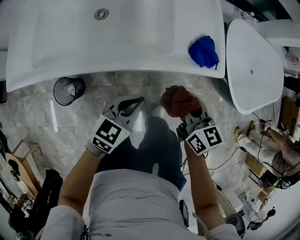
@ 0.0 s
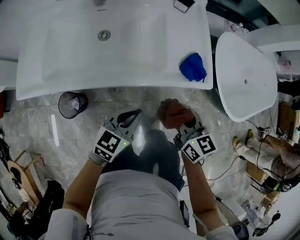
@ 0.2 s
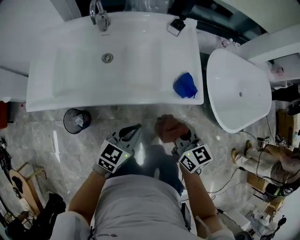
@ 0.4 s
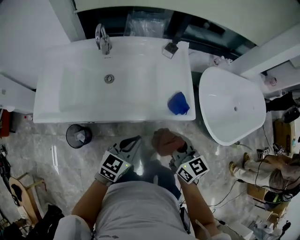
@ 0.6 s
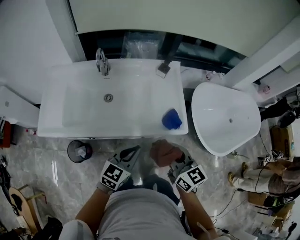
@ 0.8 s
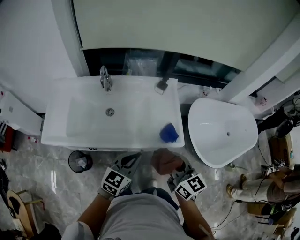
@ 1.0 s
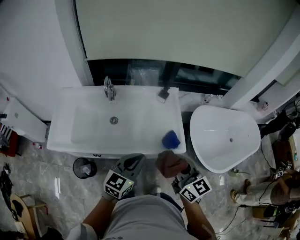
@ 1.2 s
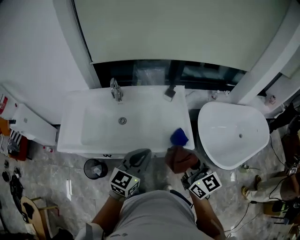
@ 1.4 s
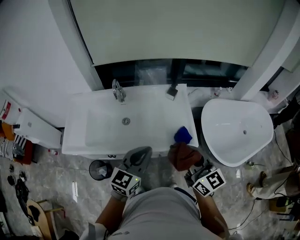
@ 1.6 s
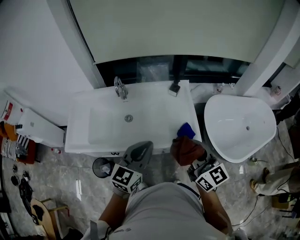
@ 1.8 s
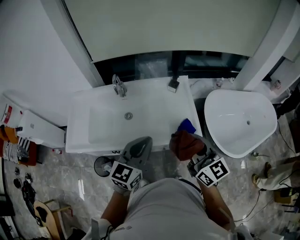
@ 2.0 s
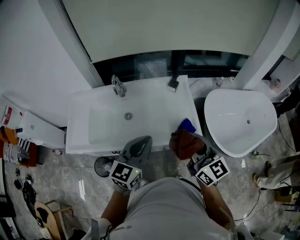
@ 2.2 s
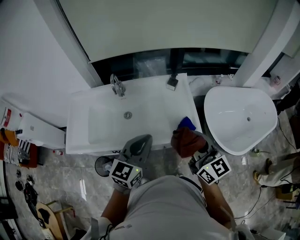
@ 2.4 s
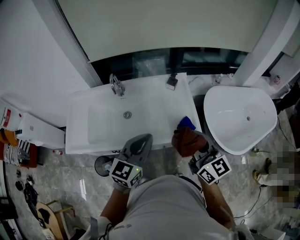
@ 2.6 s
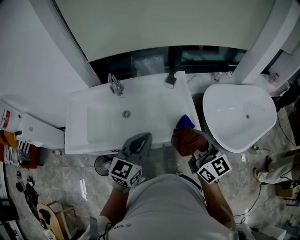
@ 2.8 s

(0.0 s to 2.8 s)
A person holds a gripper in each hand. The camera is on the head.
0.0 s - 1.4 s: The two grippers go about 30 cm upward. The left gripper turns by approximately 20 degrees, while the right gripper changes its angle by approximately 20 degrees.
1.4 s - 2.8 s: The grippers stay close to where they were, moving slightly.

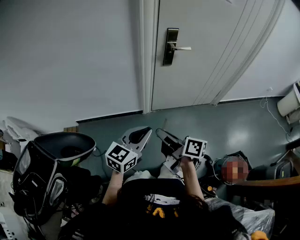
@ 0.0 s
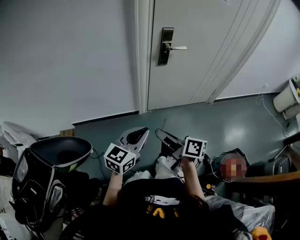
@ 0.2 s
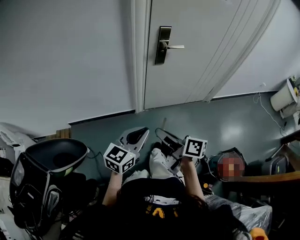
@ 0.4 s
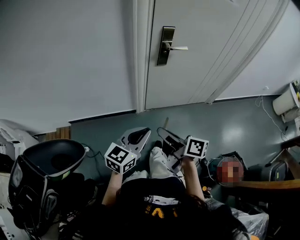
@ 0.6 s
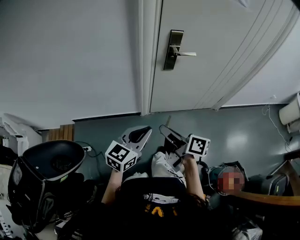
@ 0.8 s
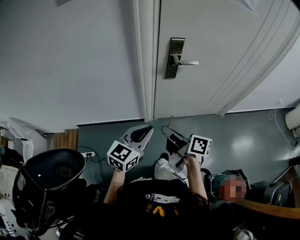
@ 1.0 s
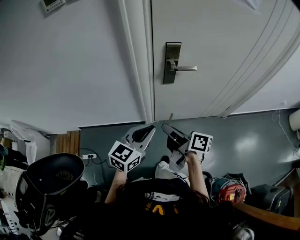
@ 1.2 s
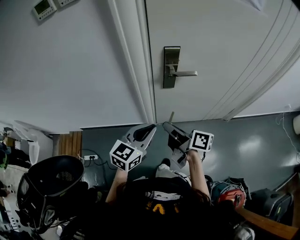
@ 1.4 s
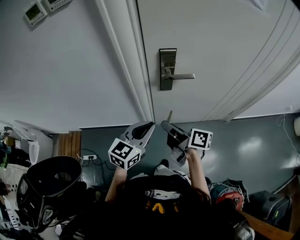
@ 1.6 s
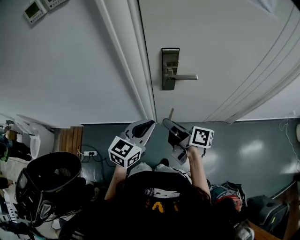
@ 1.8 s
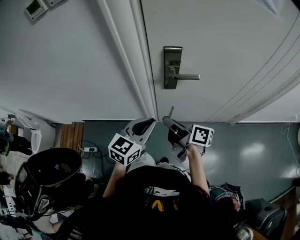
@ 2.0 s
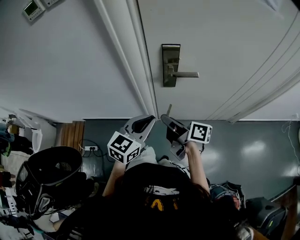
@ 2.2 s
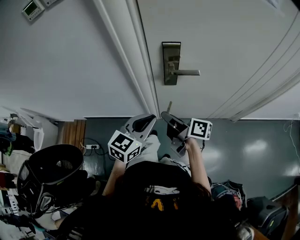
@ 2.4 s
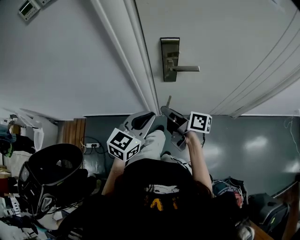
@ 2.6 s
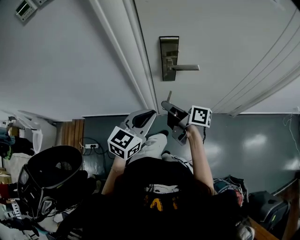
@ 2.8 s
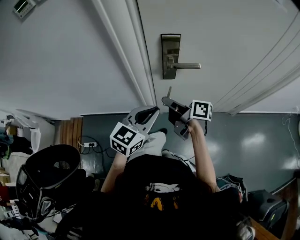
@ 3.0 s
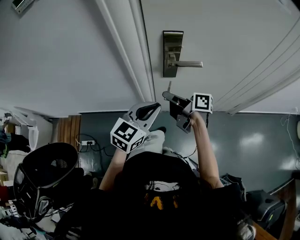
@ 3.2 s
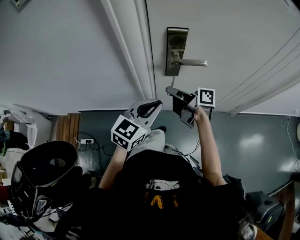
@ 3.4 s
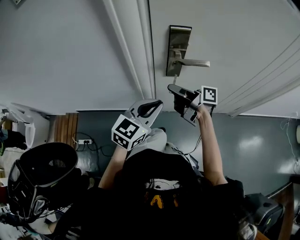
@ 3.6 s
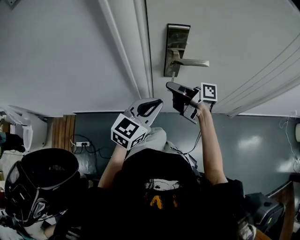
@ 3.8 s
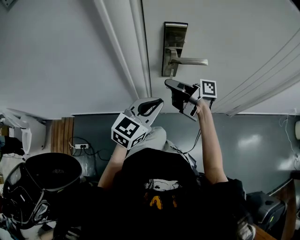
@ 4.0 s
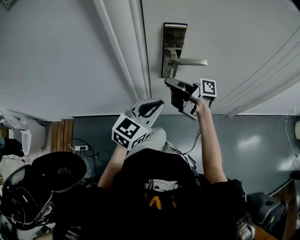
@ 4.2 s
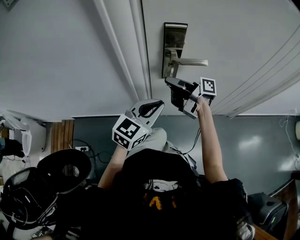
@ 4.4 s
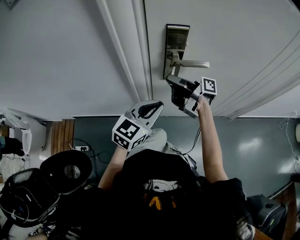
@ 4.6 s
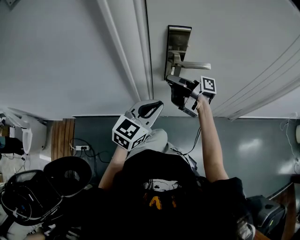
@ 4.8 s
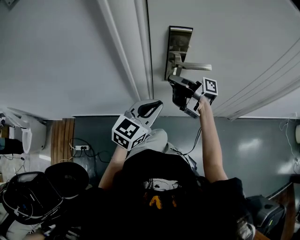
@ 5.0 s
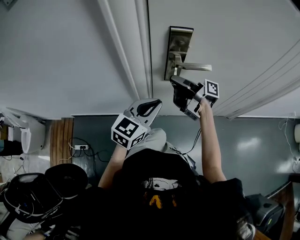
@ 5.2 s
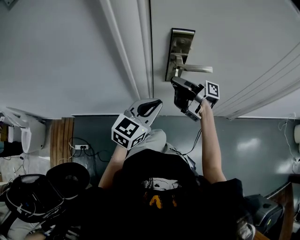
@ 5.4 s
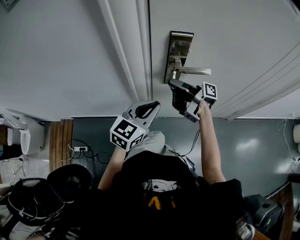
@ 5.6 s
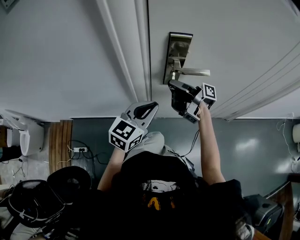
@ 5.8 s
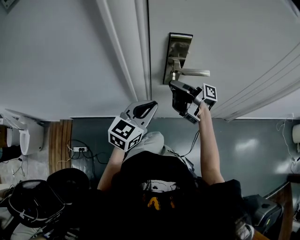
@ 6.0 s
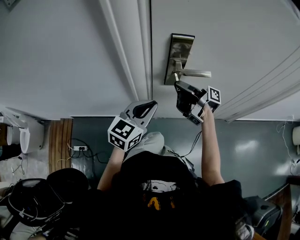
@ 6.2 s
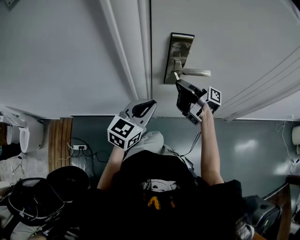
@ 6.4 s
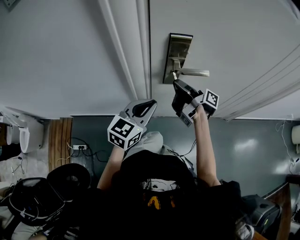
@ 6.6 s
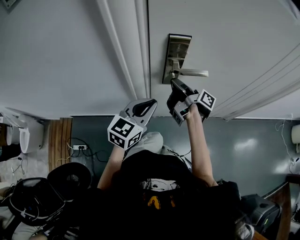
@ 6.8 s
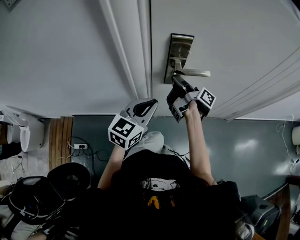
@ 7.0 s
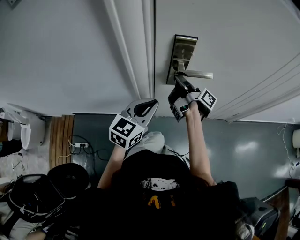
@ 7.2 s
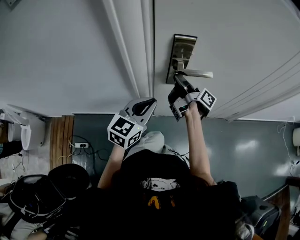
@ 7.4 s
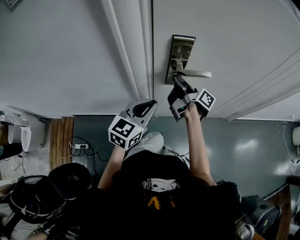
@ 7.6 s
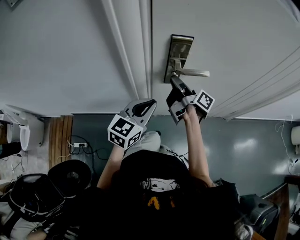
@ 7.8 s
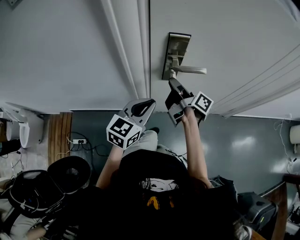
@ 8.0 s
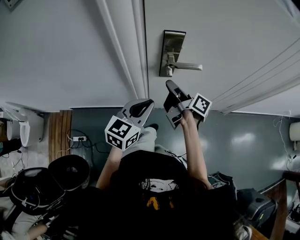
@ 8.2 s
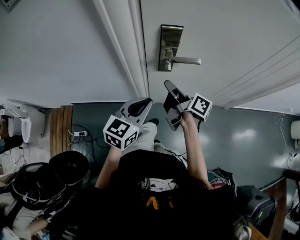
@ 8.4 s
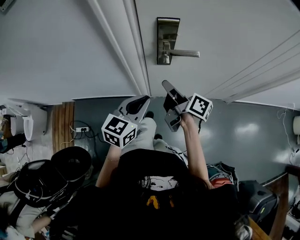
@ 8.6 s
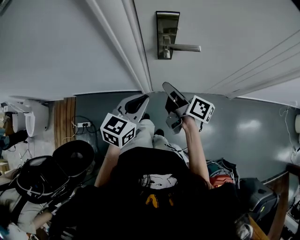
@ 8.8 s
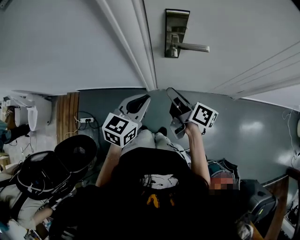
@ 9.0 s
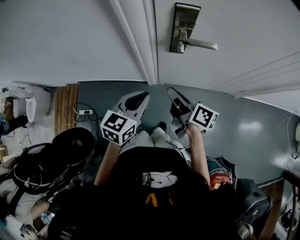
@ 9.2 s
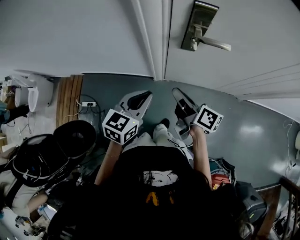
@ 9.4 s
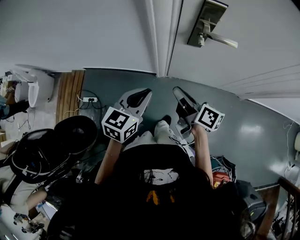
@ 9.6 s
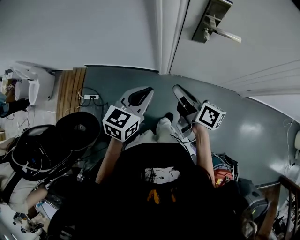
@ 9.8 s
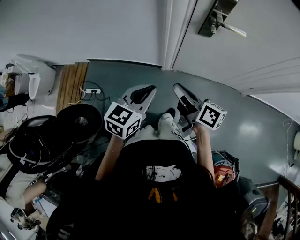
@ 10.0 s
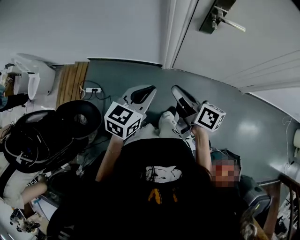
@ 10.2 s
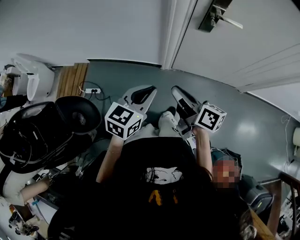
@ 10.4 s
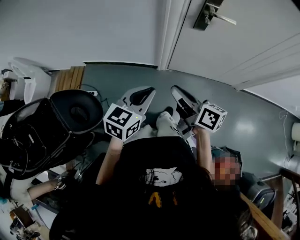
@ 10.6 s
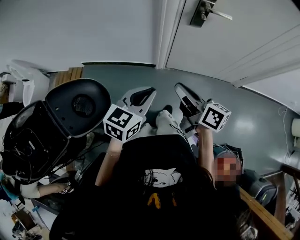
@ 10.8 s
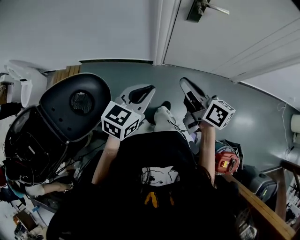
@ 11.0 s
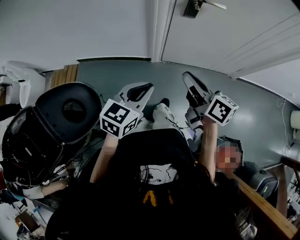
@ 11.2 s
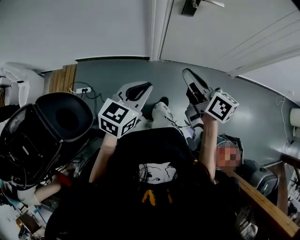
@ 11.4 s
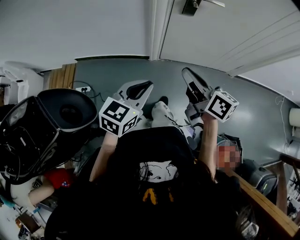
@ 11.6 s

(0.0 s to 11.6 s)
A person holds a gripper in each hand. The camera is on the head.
0.0 s - 1.4 s: The left gripper shifts by about 30 cm.
1.4 s - 2.8 s: The left gripper changes place by about 5 cm.
2.8 s - 4.4 s: The left gripper moves downward, about 5 cm.
7.2 s - 8.8 s: The left gripper moves some 10 cm.
8.8 s - 10.2 s: The left gripper ends up roughly 20 cm from where it was.
10.2 s - 11.6 s: The left gripper ends up approximately 10 cm from where it was.

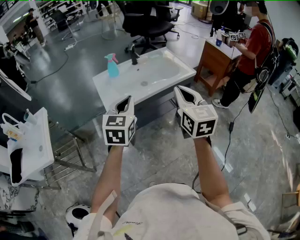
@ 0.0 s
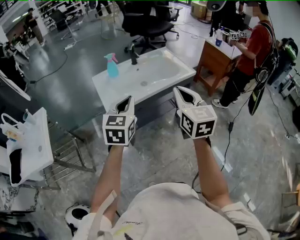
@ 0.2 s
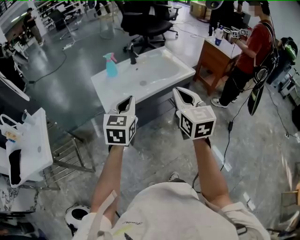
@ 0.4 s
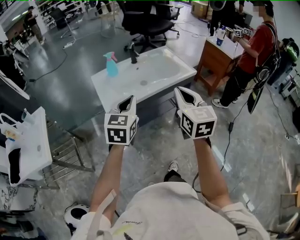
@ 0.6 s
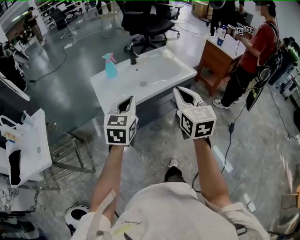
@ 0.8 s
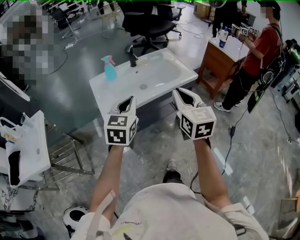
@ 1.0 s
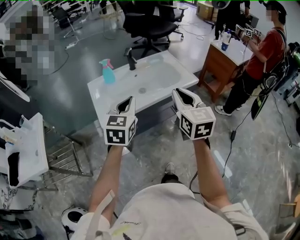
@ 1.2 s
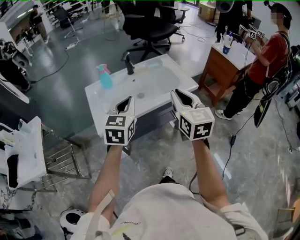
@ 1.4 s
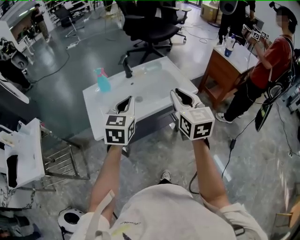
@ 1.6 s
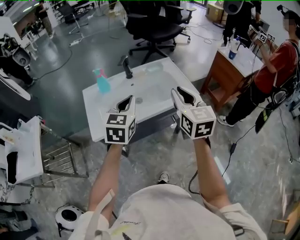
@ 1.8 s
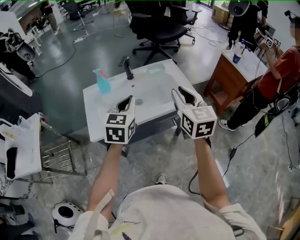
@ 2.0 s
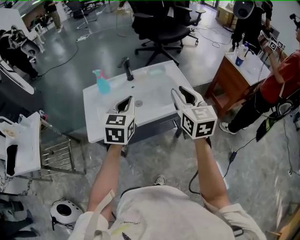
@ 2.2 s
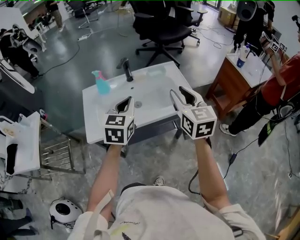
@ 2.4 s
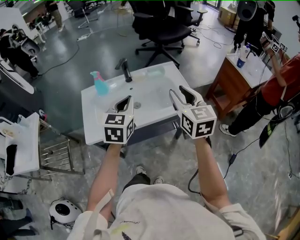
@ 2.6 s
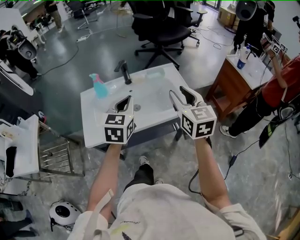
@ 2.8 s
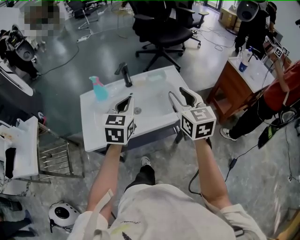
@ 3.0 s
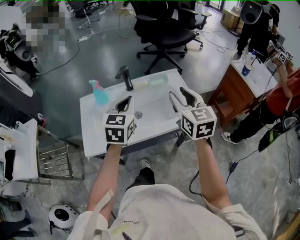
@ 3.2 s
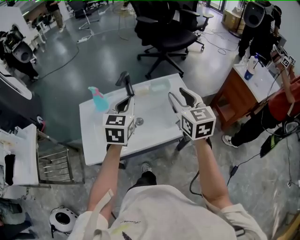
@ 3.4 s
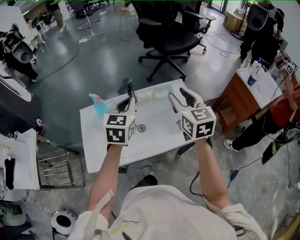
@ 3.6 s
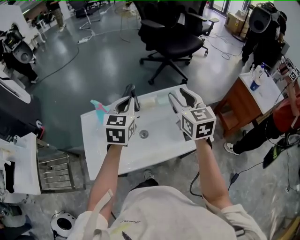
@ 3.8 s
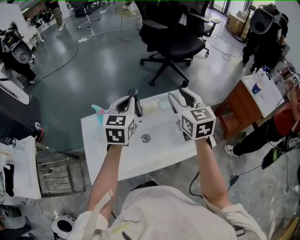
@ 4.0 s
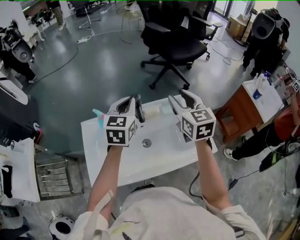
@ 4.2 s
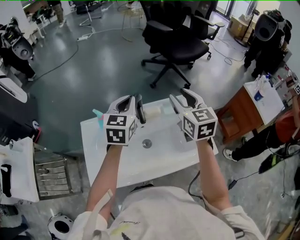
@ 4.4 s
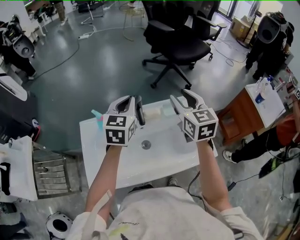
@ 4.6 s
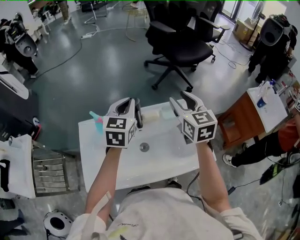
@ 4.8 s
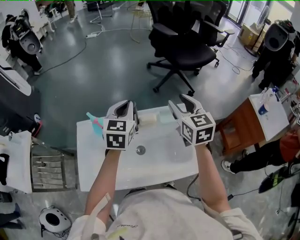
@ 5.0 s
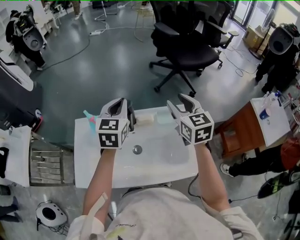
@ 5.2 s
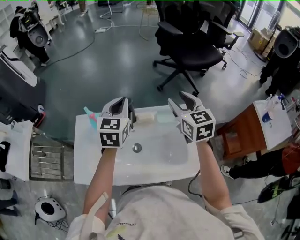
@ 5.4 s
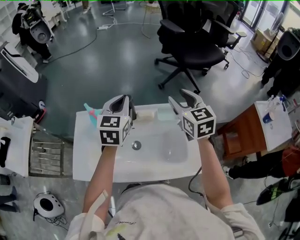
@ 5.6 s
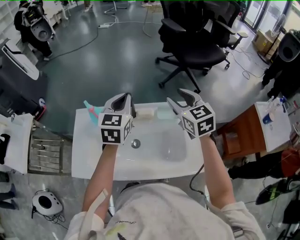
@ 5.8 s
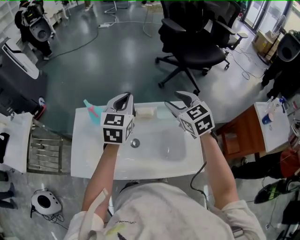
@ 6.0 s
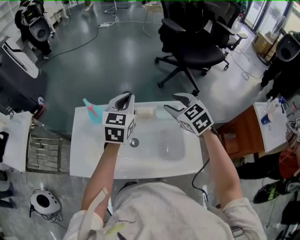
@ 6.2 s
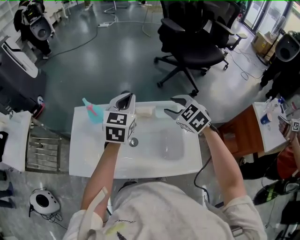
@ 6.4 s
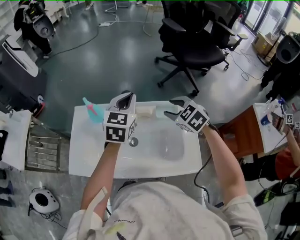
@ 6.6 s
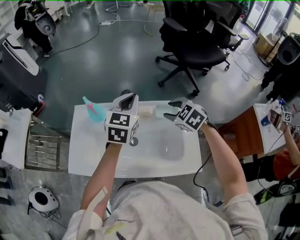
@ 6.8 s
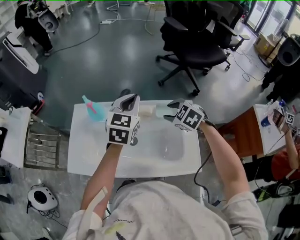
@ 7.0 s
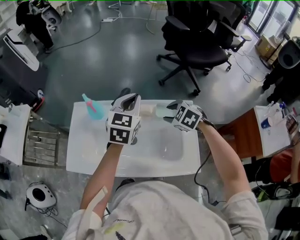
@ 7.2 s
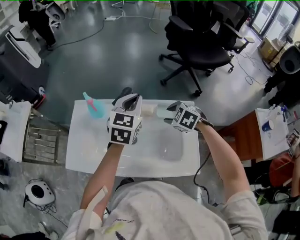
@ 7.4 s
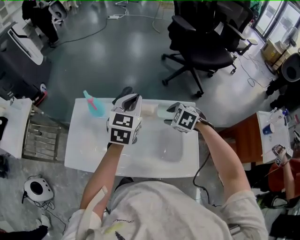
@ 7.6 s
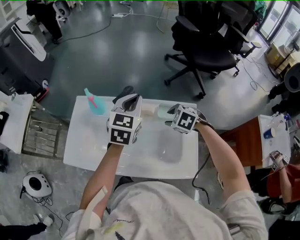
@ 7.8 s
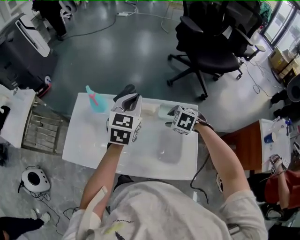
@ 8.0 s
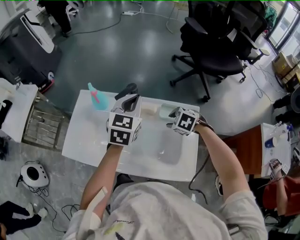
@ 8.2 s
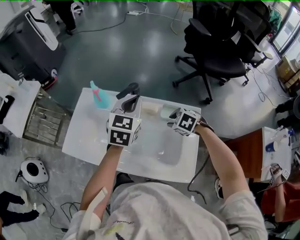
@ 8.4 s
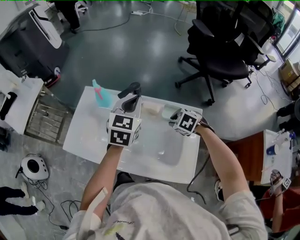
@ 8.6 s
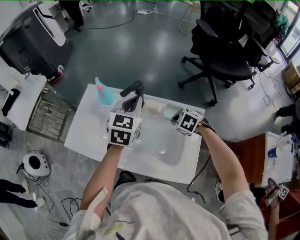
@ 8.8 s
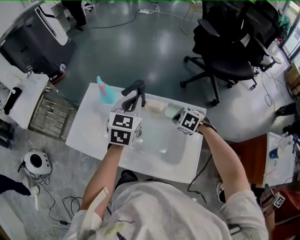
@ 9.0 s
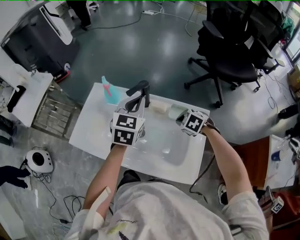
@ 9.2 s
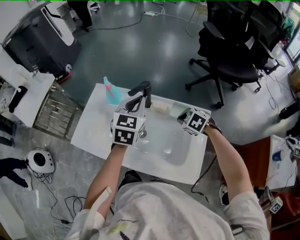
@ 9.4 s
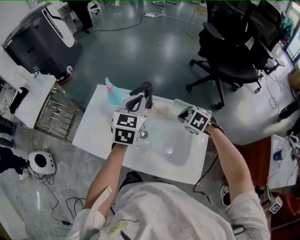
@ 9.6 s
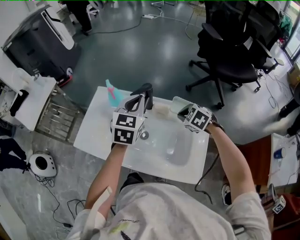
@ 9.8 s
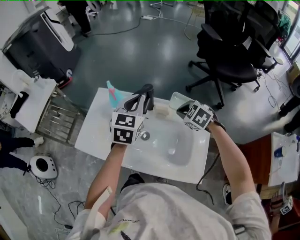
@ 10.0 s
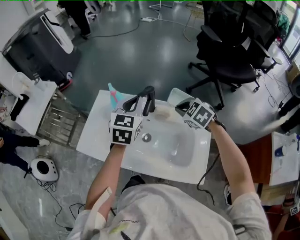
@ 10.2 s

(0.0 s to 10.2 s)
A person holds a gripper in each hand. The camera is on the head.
0.0 s - 1.4 s: The two grippers go approximately 15 cm forward.
1.4 s - 3.0 s: The left gripper shifts about 15 cm forward and to the right. The right gripper moves forward, approximately 15 cm, and opens.
3.0 s - 4.4 s: The two grippers go about 25 cm forward.
4.4 s - 5.8 s: The right gripper changes place by approximately 5 cm, and turns by roughly 20 degrees.
5.8 s - 7.2 s: The right gripper moves downward, some 15 cm, and angles its fingers downward, by about 40 degrees.
7.2 s - 8.8 s: The right gripper heads downward, covering some 10 cm, and closes.
8.8 s - 10.2 s: The left gripper moves about 5 cm. Meanwhile the right gripper heads upward, covering approximately 10 cm.
